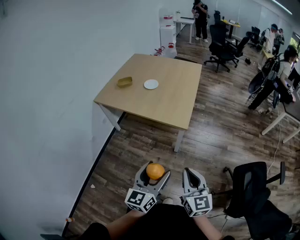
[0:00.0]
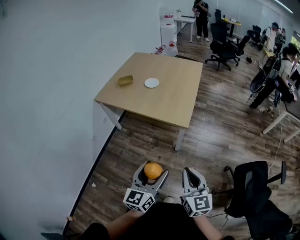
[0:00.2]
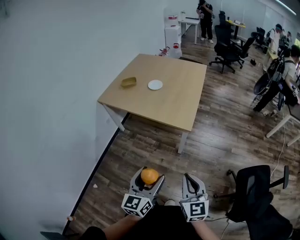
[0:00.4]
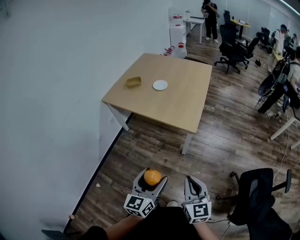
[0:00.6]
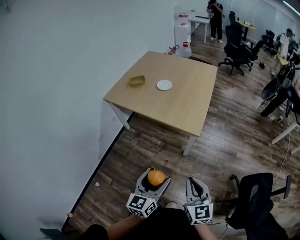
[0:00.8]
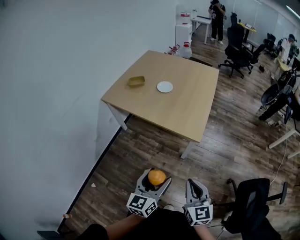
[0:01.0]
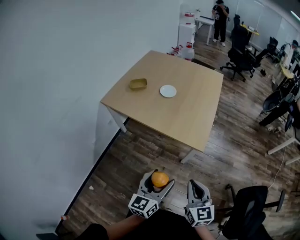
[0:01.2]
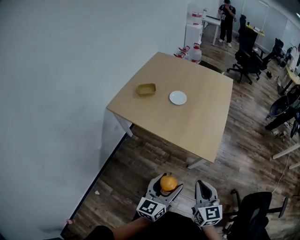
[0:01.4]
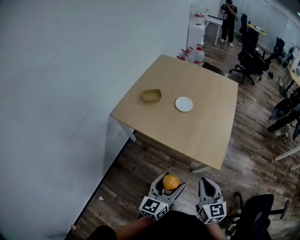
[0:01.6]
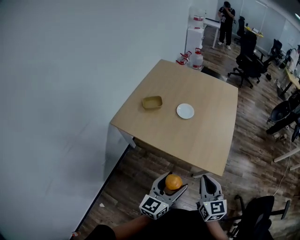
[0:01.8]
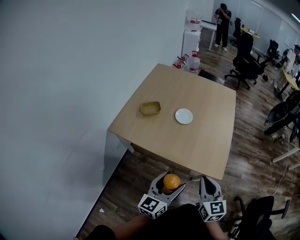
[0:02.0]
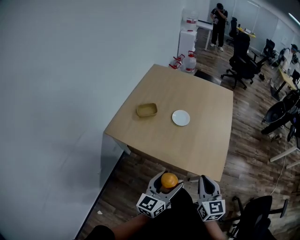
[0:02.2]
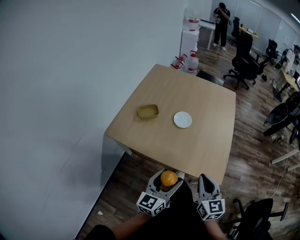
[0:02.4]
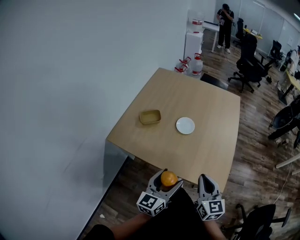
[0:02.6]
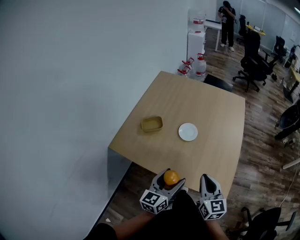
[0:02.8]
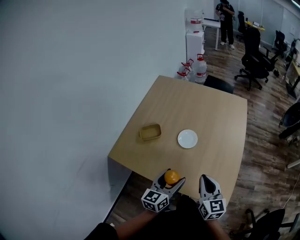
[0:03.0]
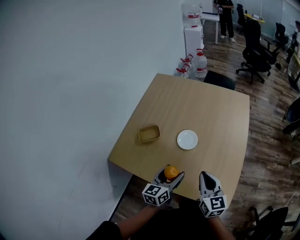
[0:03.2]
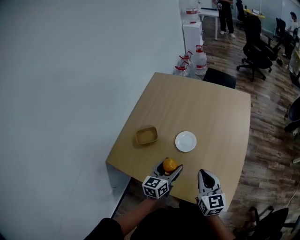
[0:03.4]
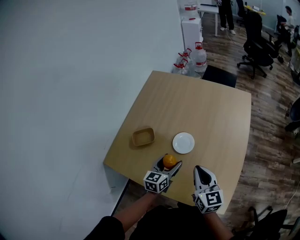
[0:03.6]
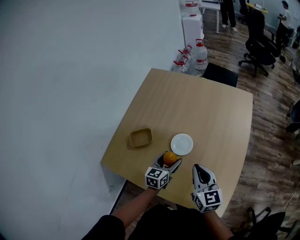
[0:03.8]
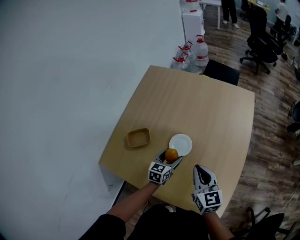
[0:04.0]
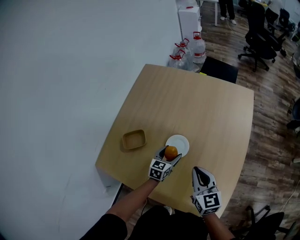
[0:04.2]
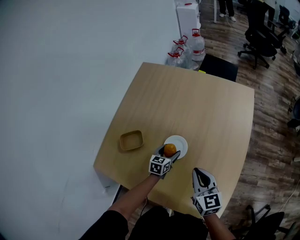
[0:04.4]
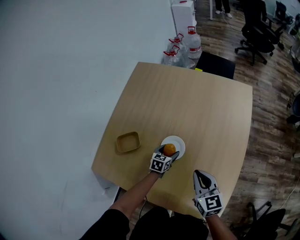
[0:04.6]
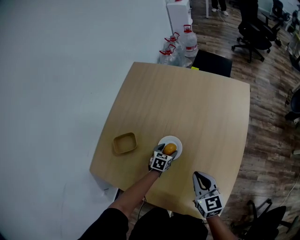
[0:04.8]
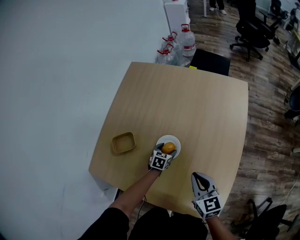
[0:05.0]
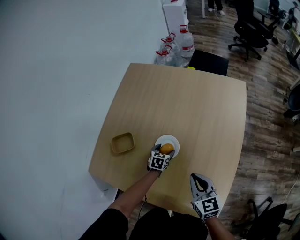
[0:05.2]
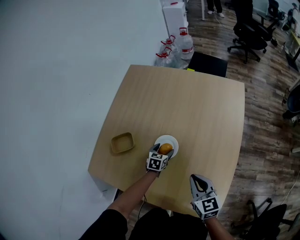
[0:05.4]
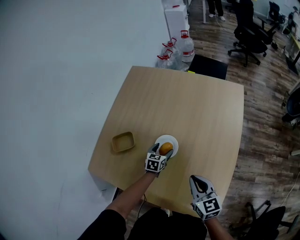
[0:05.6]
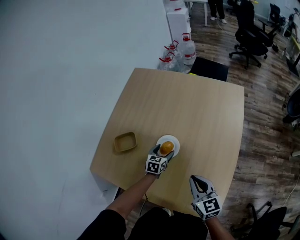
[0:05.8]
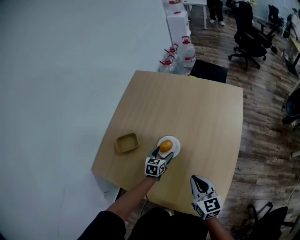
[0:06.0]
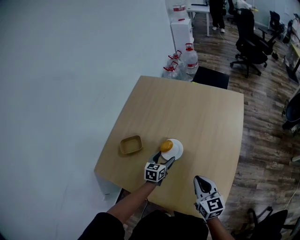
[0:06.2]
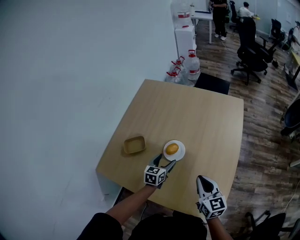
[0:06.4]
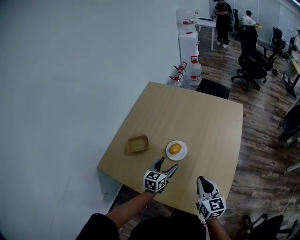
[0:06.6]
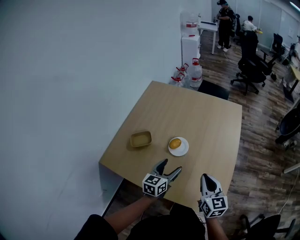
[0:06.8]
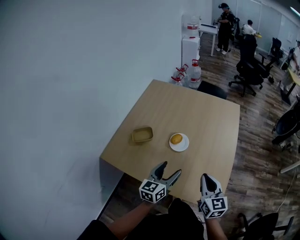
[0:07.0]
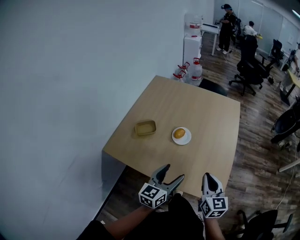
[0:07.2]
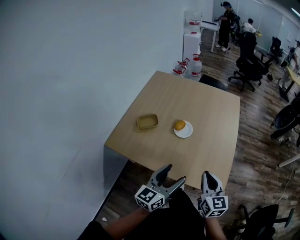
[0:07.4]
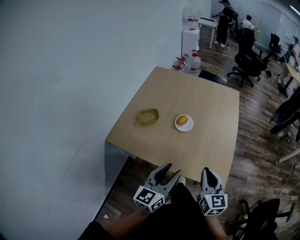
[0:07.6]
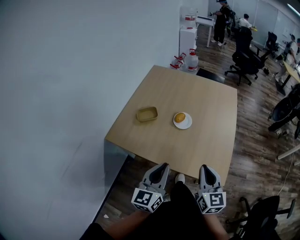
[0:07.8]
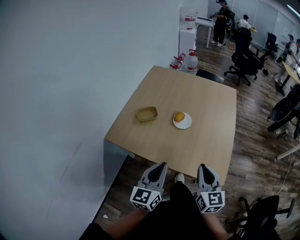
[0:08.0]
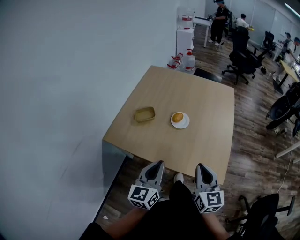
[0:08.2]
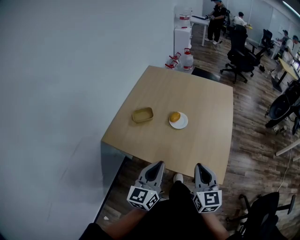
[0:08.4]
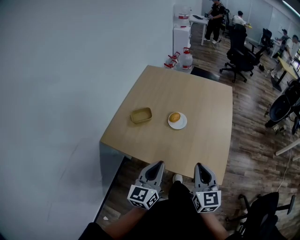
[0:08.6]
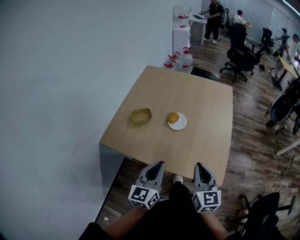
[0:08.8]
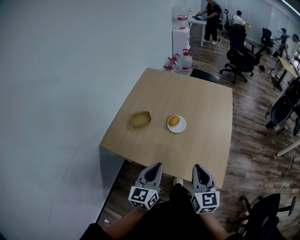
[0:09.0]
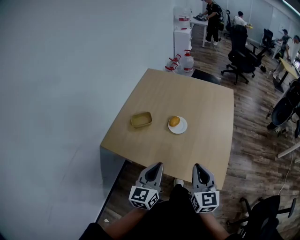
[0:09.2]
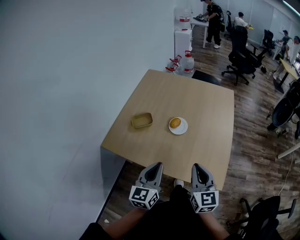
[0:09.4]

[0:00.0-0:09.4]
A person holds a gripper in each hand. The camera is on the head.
0.0 to 1.6 s: The two grippers go about 30 cm forward and to the left.
1.6 to 3.2 s: Both grippers move forward, approximately 30 cm.
3.2 to 4.8 s: The right gripper moves forward and downward, approximately 15 cm. The left gripper shifts approximately 35 cm downward and forward, and angles its fingers downward, by about 40 degrees.
4.8 to 6.2 s: The left gripper travels upward by approximately 10 cm. Meanwhile the right gripper ends up approximately 5 cm from where it was.
6.2 to 7.8 s: The left gripper travels backward and upward by some 40 cm, tips its fingers upward by some 30 degrees, and closes its fingers. The right gripper moves backward and upward, about 25 cm.
7.8 to 9.4 s: There are only small adjustments of the grippers.

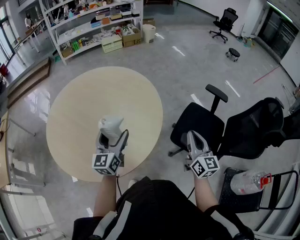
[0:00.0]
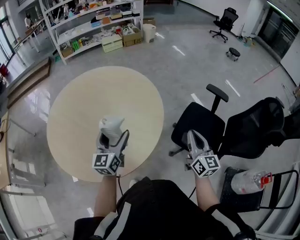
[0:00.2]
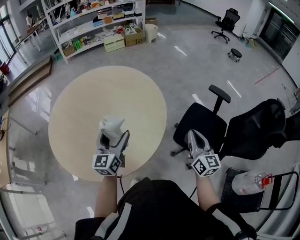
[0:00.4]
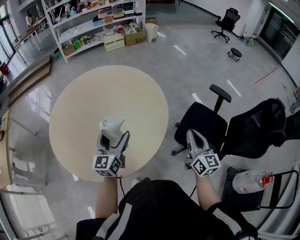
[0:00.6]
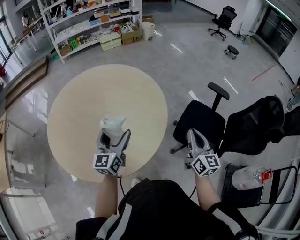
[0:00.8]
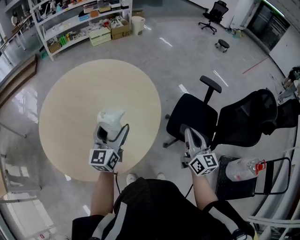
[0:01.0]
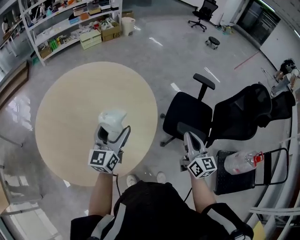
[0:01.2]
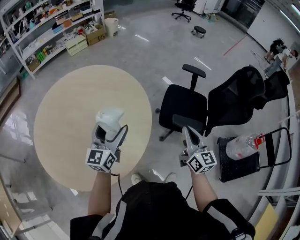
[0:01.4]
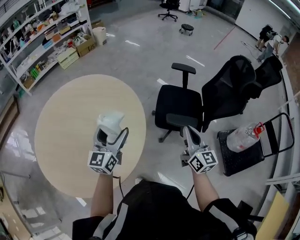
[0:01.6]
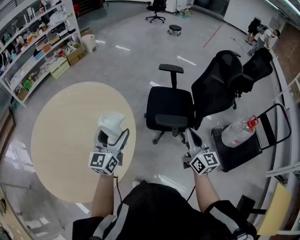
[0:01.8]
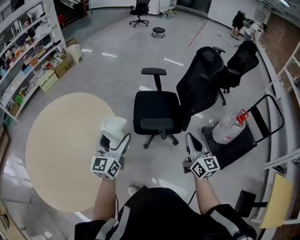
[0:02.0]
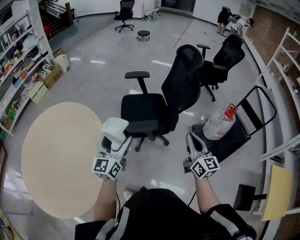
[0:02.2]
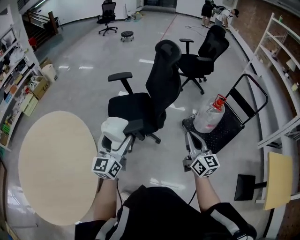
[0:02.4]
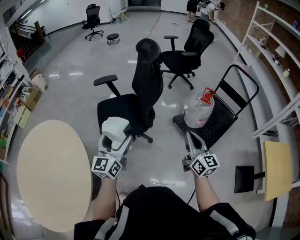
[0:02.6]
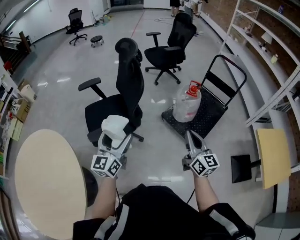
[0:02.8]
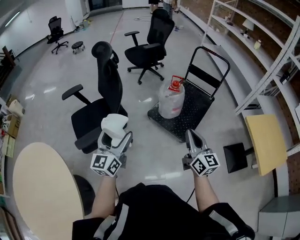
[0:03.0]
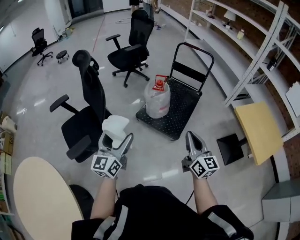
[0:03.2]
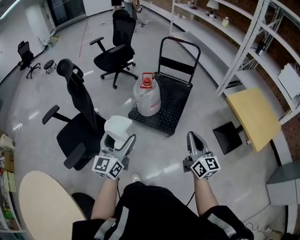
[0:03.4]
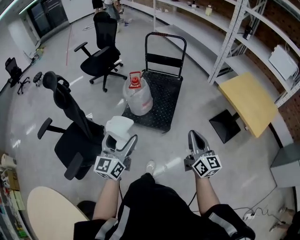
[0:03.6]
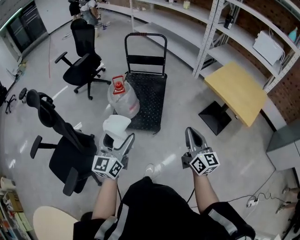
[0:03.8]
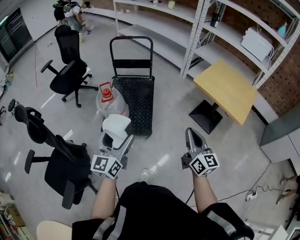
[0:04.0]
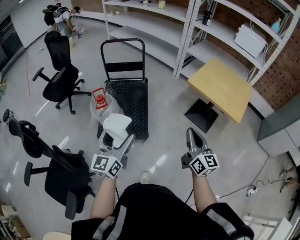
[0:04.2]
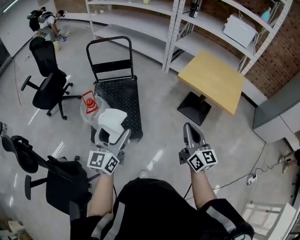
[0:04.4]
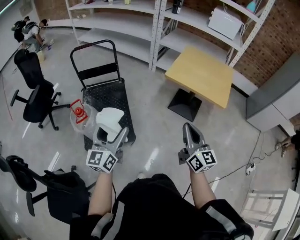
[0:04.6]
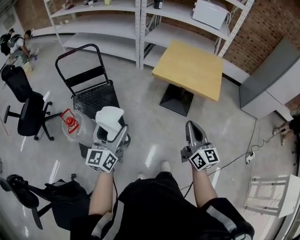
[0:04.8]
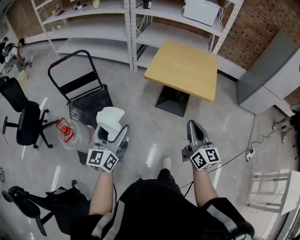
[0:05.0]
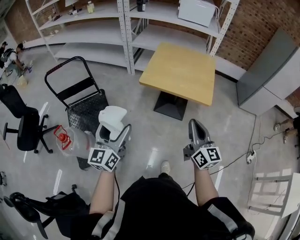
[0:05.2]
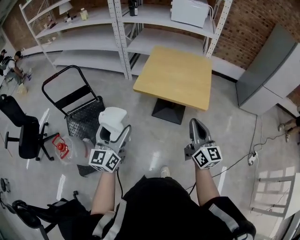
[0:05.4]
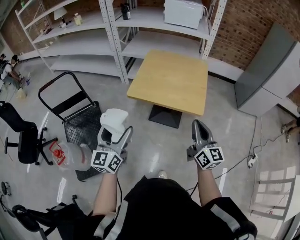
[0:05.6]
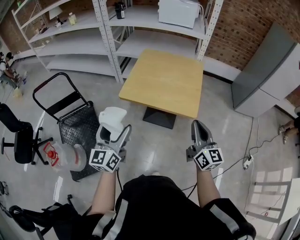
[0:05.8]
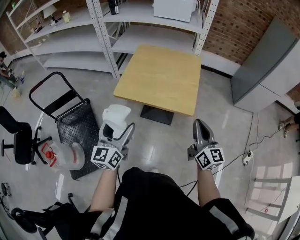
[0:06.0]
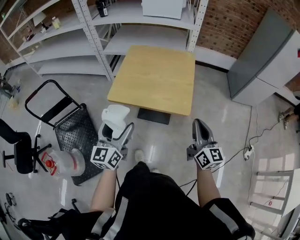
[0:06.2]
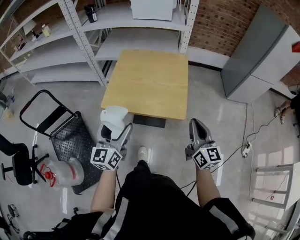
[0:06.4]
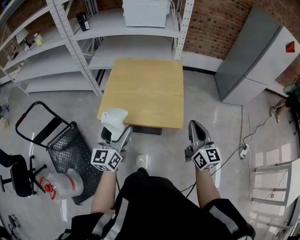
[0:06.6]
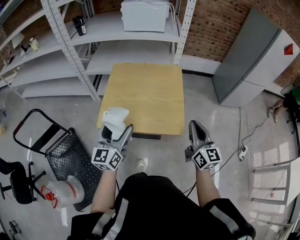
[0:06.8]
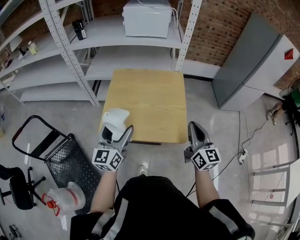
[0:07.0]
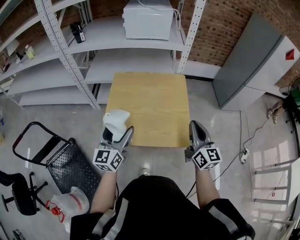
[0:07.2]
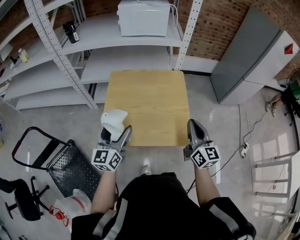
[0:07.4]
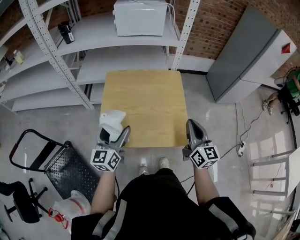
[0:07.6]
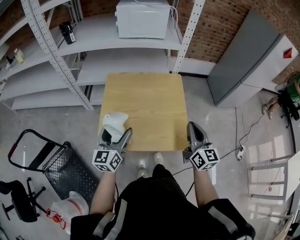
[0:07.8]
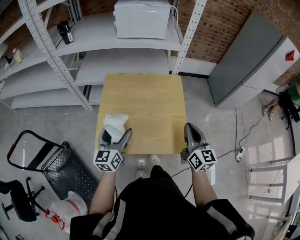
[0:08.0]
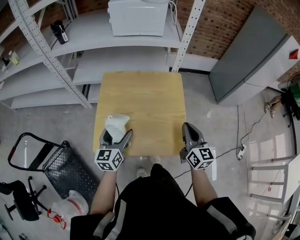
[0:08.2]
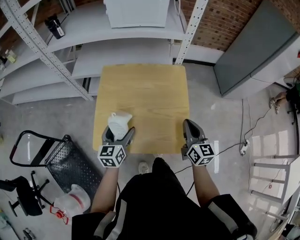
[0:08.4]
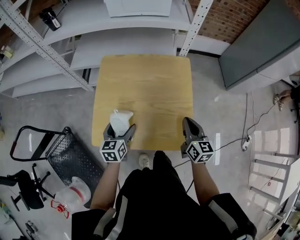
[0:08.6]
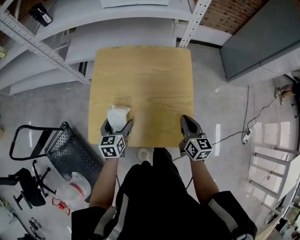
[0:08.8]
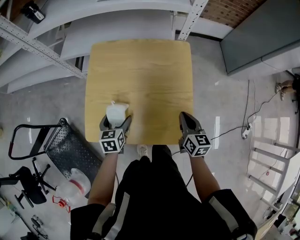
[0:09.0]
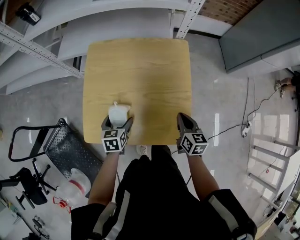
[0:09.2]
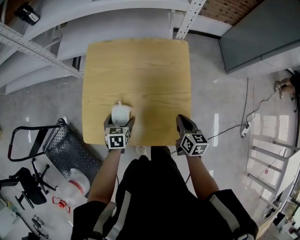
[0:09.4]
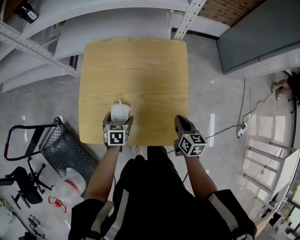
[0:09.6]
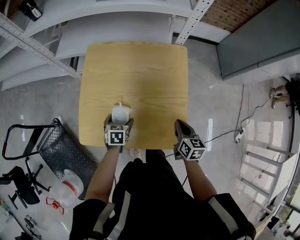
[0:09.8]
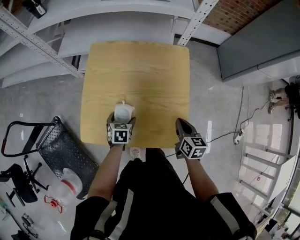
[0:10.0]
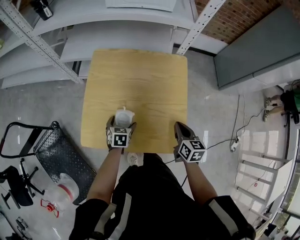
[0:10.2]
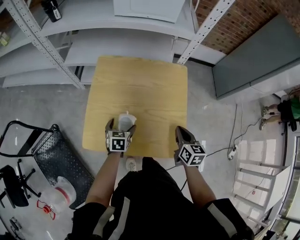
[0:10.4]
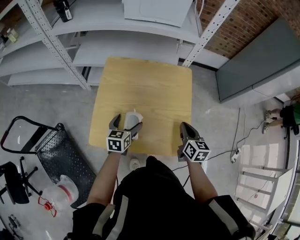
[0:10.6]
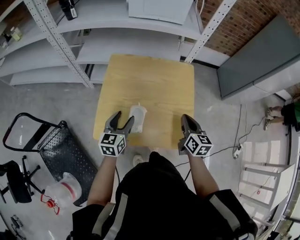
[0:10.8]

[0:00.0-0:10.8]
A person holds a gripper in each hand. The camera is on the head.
0.0 to 1.6 s: The right gripper shifts by about 10 cm; the left gripper ends up approximately 5 cm from where it was, and rotates some 30 degrees.
1.6 to 3.0 s: Both grippers are carried about 50 cm. The right gripper swivels some 50 degrees; the left gripper rotates about 50 degrees.
3.0 to 4.6 s: The right gripper changes place by about 30 cm, and changes its angle by some 50 degrees; the left gripper changes place by about 50 cm, and rotates about 50 degrees.
4.6 to 6.2 s: Both grippers are carried to the right and forward, approximately 40 cm. The right gripper swivels approximately 20 degrees, while the left gripper swivels approximately 20 degrees.
6.2 to 7.8 s: The grippers both shift forward by roughly 25 cm.
7.8 to 9.2 s: The two grippers go roughly 25 cm downward. The right gripper tips its fingers downward by about 30 degrees. The left gripper points its fingers approximately 50 degrees further downward.
9.2 to 10.8 s: The two grippers go some 10 cm upward. The left gripper changes its angle by about 30 degrees.

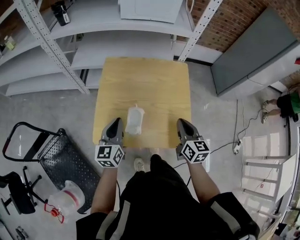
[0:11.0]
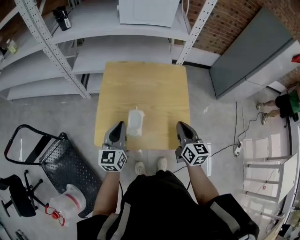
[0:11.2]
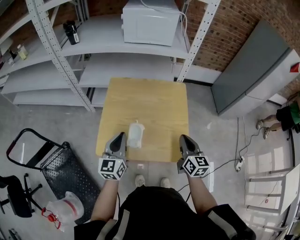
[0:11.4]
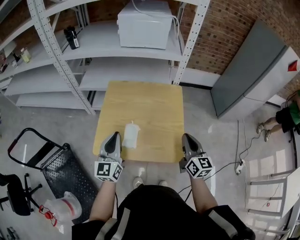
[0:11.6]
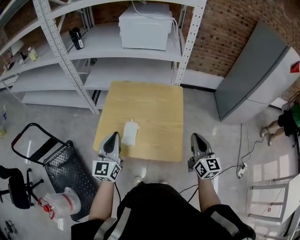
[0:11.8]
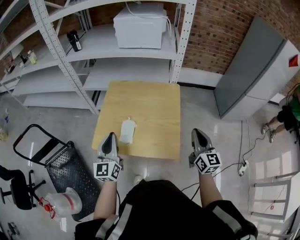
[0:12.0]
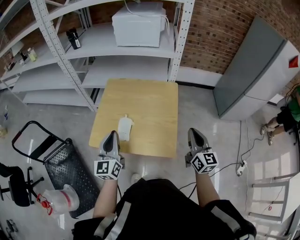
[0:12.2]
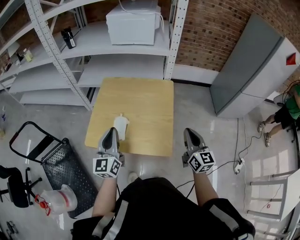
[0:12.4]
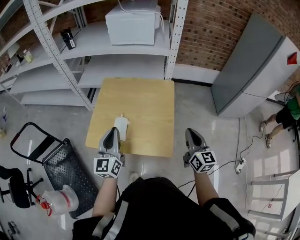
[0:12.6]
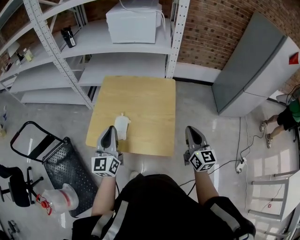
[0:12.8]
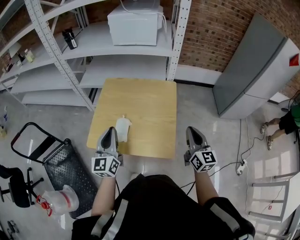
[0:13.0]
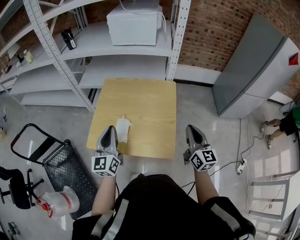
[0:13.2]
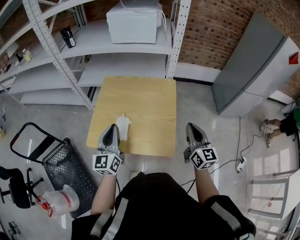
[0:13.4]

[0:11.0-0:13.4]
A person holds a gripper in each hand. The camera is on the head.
11.0 to 12.2 s: The right gripper shifts about 15 cm to the right and upward. Meanwhile the left gripper moves upward, backward and to the right, some 15 cm.
12.2 to 13.4 s: The grippers stay close to where they were, moving slightly.

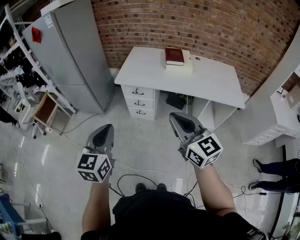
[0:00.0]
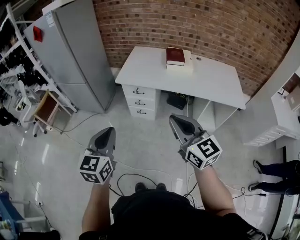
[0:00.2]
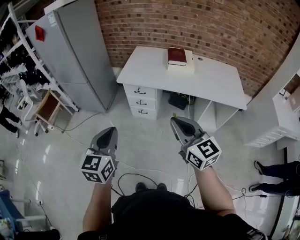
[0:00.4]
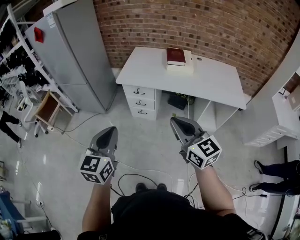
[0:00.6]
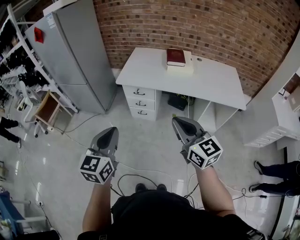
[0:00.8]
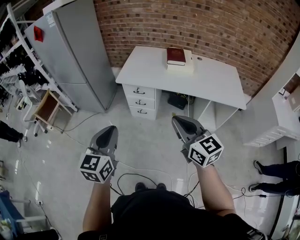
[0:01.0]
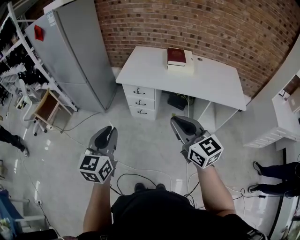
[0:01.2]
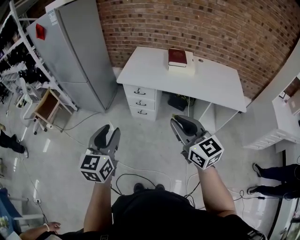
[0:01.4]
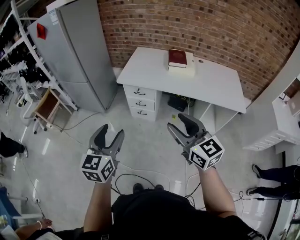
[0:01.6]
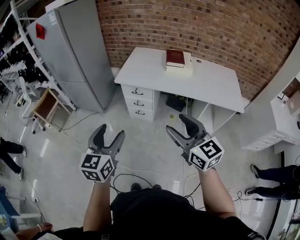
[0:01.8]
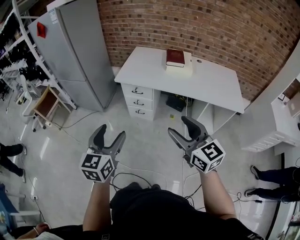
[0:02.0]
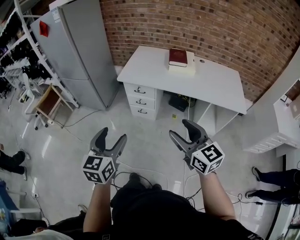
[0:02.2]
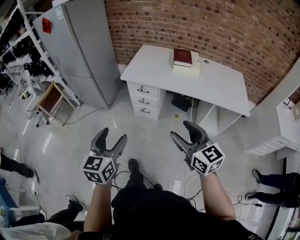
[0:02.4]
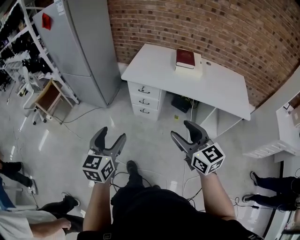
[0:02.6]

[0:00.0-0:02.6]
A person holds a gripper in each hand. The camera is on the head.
0.0 to 1.2 s: There are only small adjustments of the grippers.
1.2 to 2.6 s: The left gripper moves some 5 cm, and opens; the right gripper opens its fingers.
